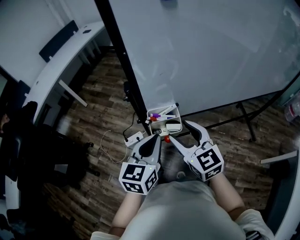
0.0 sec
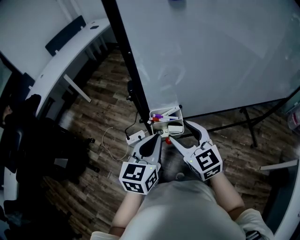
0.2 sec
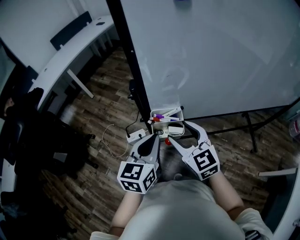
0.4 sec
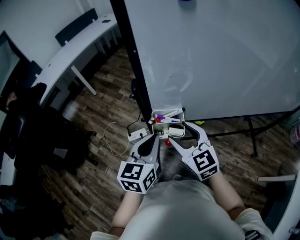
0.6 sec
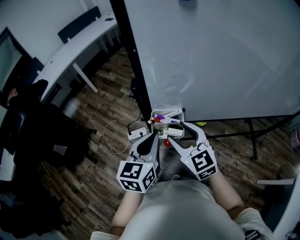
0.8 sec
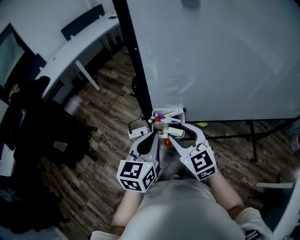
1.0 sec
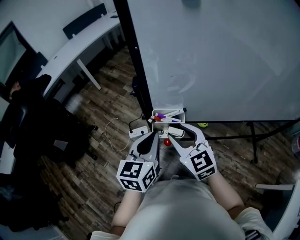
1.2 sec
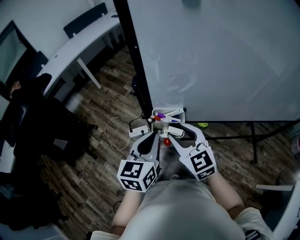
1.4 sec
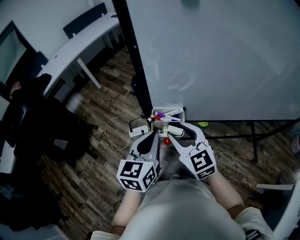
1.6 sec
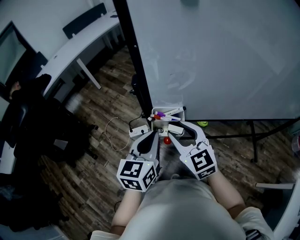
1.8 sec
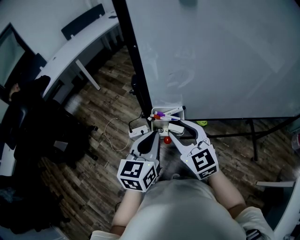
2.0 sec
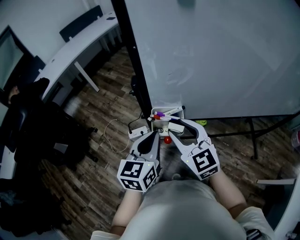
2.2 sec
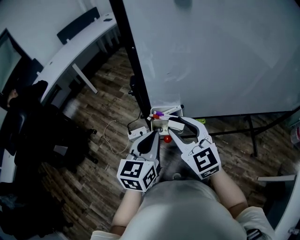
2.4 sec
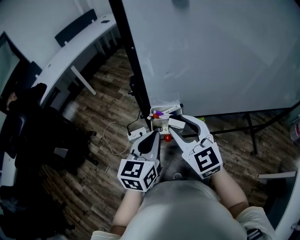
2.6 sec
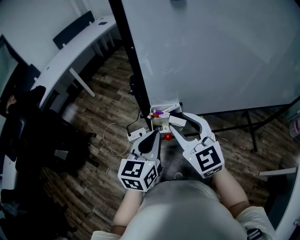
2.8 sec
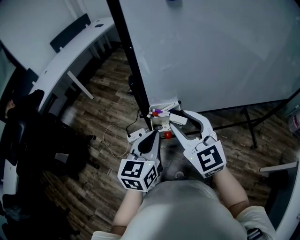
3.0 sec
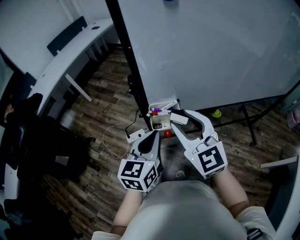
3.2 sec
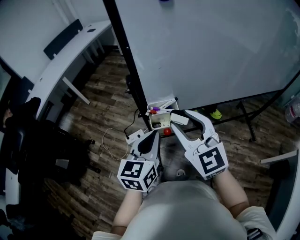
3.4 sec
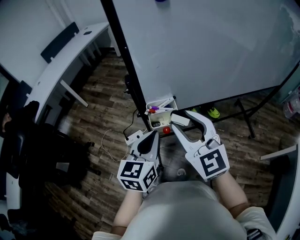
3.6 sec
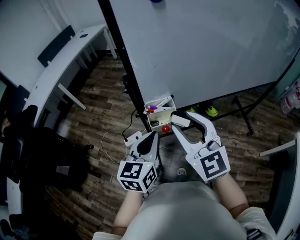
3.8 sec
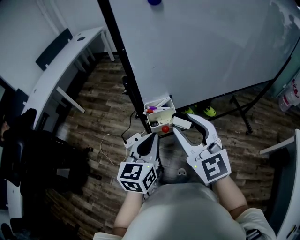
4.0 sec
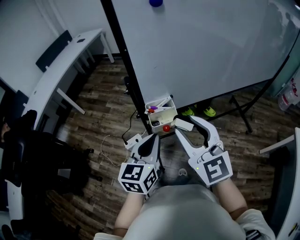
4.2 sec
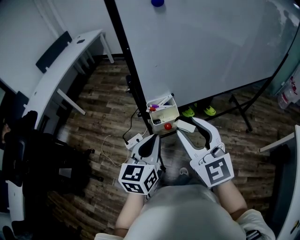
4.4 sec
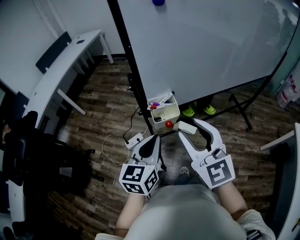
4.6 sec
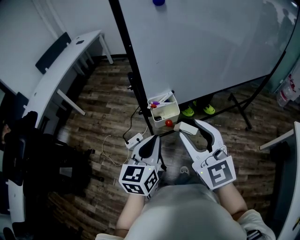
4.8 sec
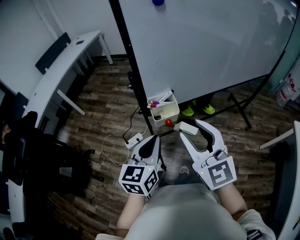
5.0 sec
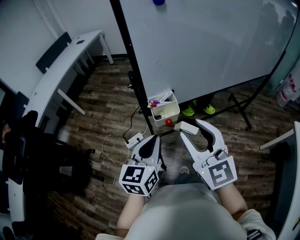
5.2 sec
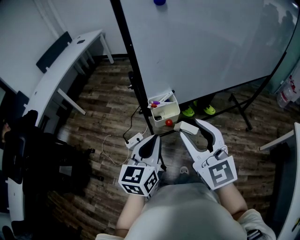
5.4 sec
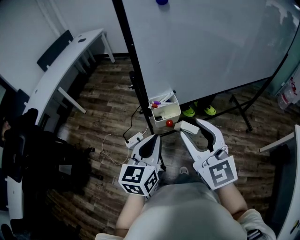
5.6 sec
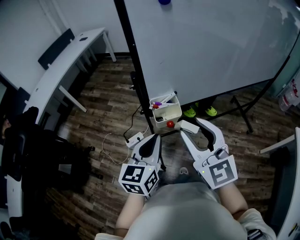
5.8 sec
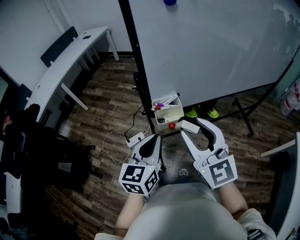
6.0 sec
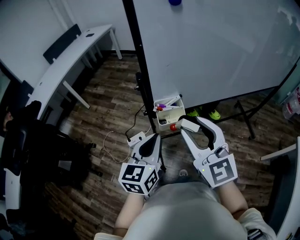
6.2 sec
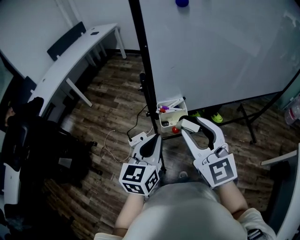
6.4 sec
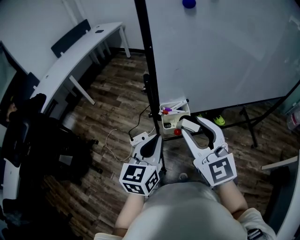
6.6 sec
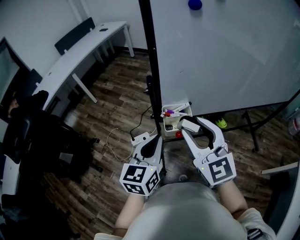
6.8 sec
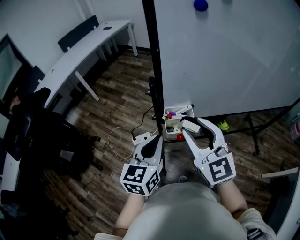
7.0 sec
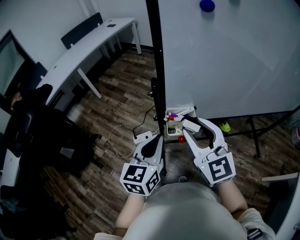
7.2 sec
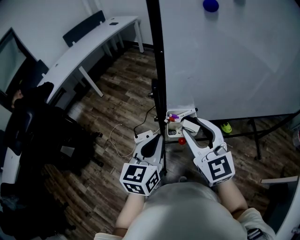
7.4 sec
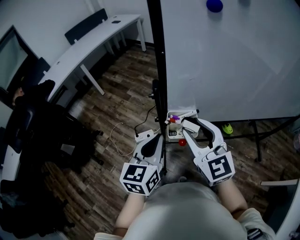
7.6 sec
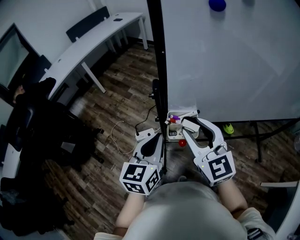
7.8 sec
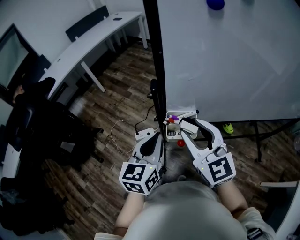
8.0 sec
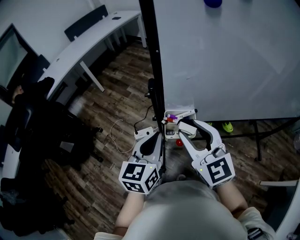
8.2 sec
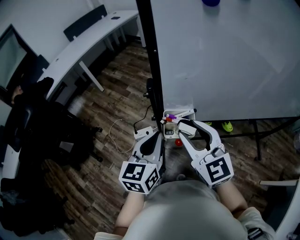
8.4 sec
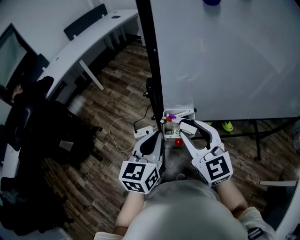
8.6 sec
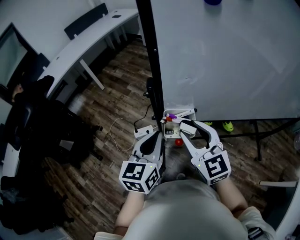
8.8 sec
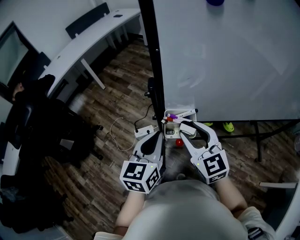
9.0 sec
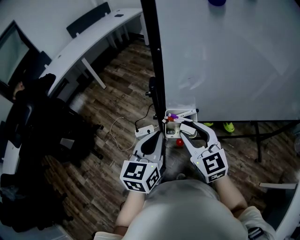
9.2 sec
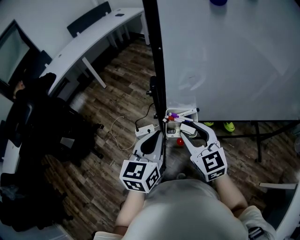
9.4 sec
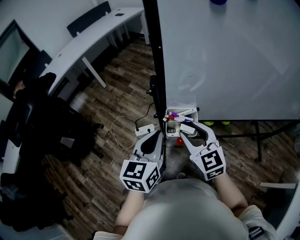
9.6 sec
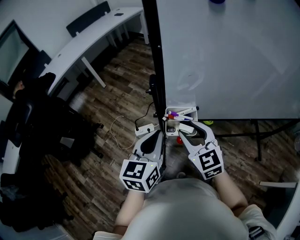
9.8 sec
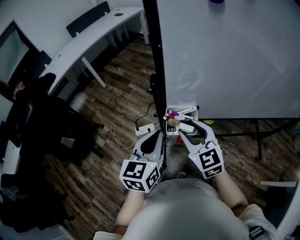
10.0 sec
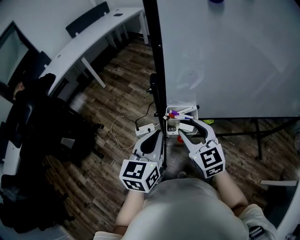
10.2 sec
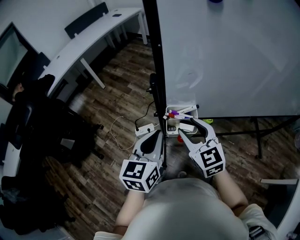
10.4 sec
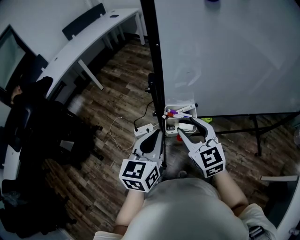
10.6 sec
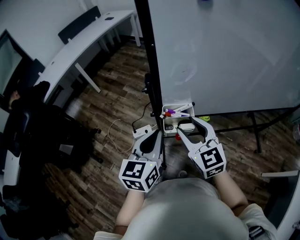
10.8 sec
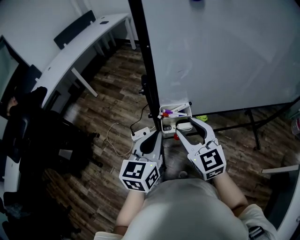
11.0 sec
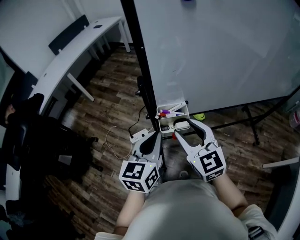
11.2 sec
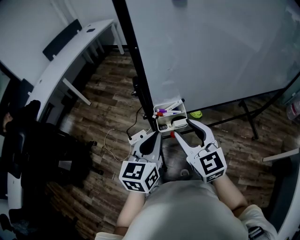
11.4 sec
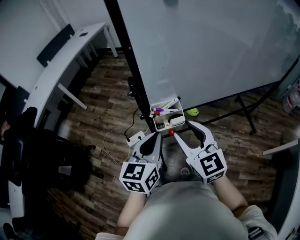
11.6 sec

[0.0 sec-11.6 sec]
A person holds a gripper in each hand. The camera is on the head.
0.0 sec to 1.4 sec: The grippers move only a little.
1.4 sec to 2.8 sec: The right gripper moves upward, roughly 10 cm.
2.8 sec to 4.4 sec: The right gripper heads backward and upward, covering approximately 10 cm. The left gripper goes about 5 cm backward.
4.4 sec to 5.8 sec: There are only small adjustments of the grippers.
5.8 sec to 7.2 sec: The left gripper is displaced forward by some 5 cm, while the right gripper is displaced forward by roughly 10 cm.
7.2 sec to 8.8 sec: The right gripper travels downward by about 5 cm.
8.8 sec to 10.2 sec: The grippers move only a little.
10.2 sec to 11.6 sec: The right gripper shifts some 5 cm backward.

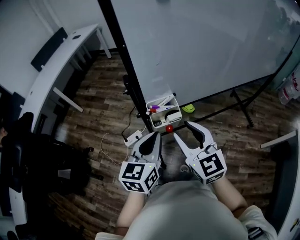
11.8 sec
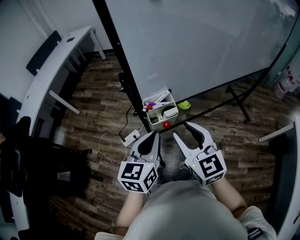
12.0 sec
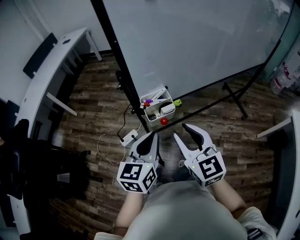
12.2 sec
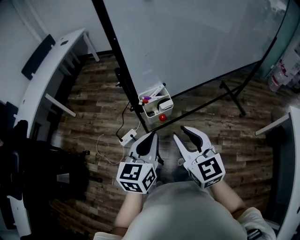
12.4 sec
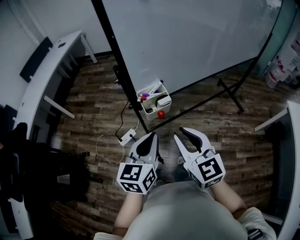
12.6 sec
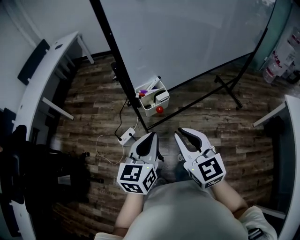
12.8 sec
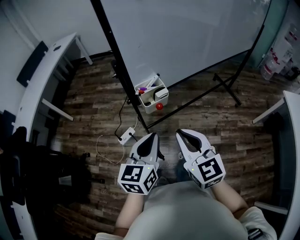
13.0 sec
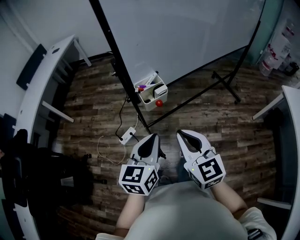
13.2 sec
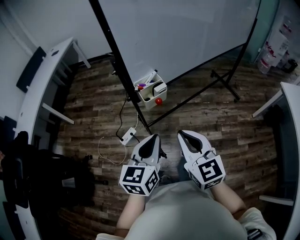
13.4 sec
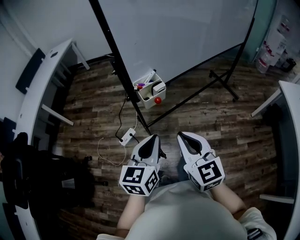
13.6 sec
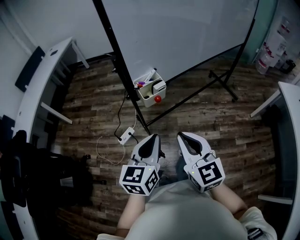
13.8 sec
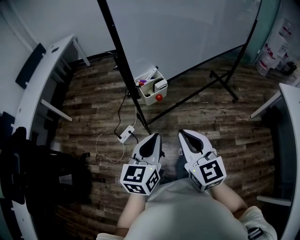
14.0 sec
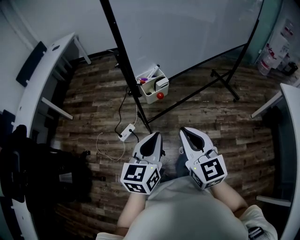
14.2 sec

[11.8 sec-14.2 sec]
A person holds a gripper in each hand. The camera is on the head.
11.8 sec to 13.0 sec: The two grippers go roughly 10 cm backward. The right gripper closes its fingers.
13.0 sec to 14.2 sec: The left gripper shifts by approximately 5 cm.

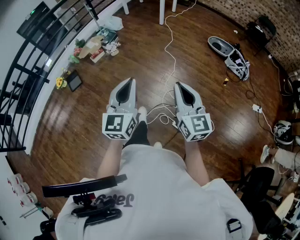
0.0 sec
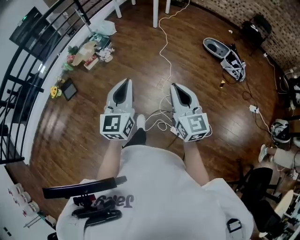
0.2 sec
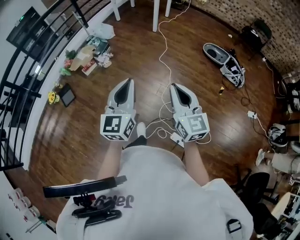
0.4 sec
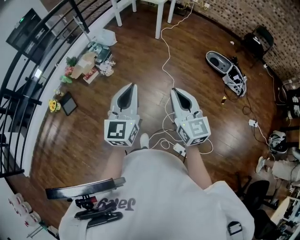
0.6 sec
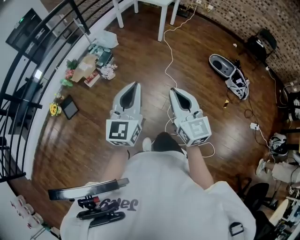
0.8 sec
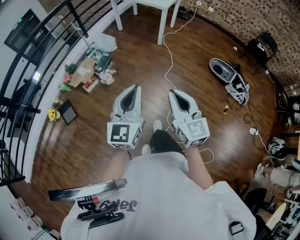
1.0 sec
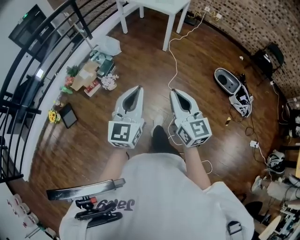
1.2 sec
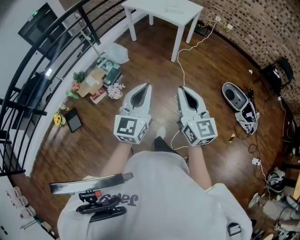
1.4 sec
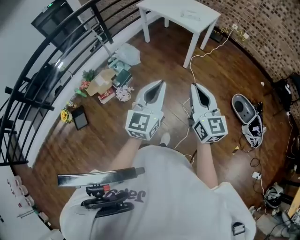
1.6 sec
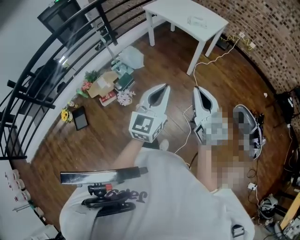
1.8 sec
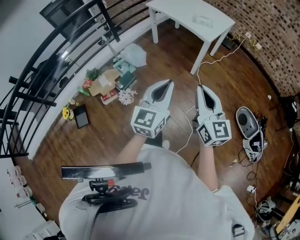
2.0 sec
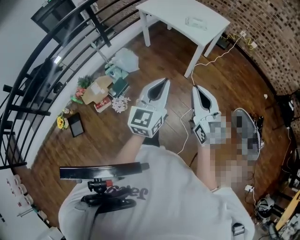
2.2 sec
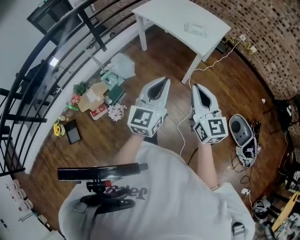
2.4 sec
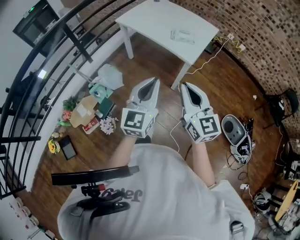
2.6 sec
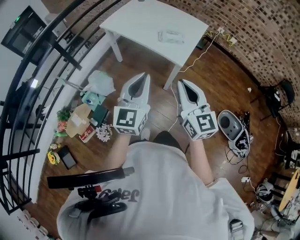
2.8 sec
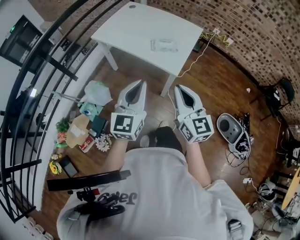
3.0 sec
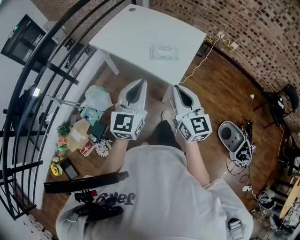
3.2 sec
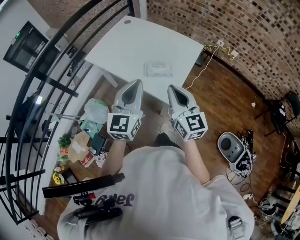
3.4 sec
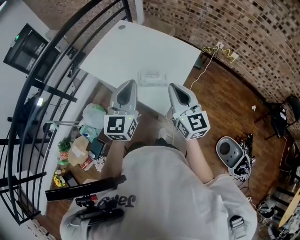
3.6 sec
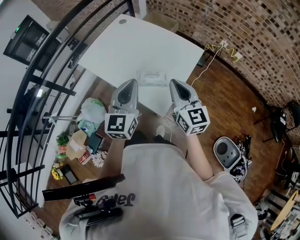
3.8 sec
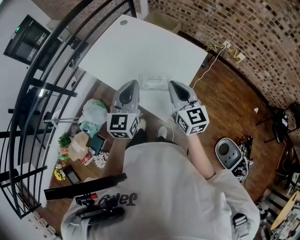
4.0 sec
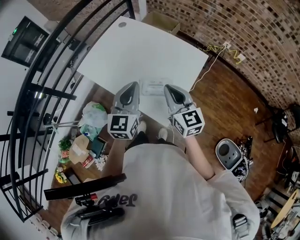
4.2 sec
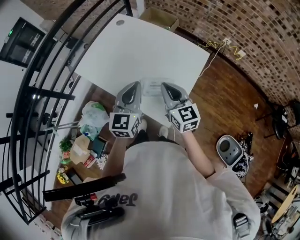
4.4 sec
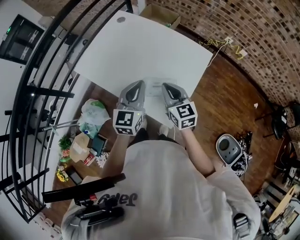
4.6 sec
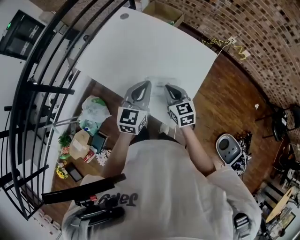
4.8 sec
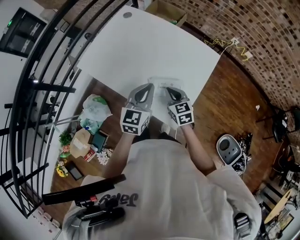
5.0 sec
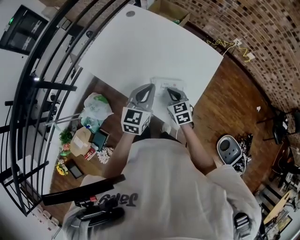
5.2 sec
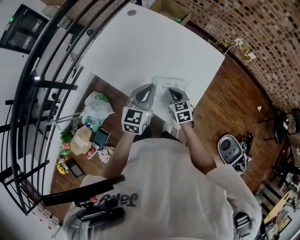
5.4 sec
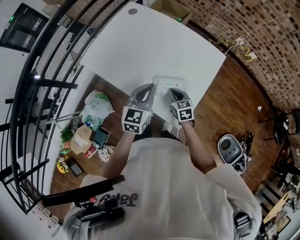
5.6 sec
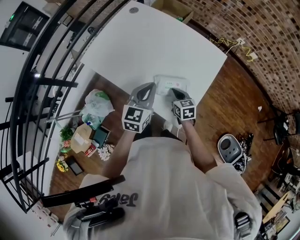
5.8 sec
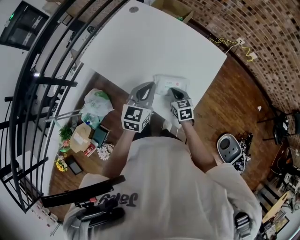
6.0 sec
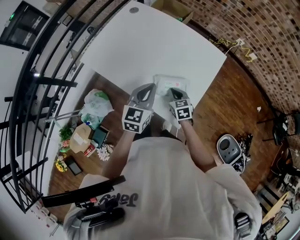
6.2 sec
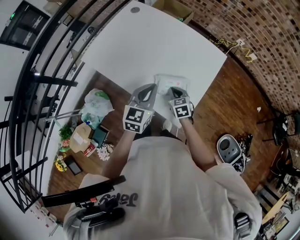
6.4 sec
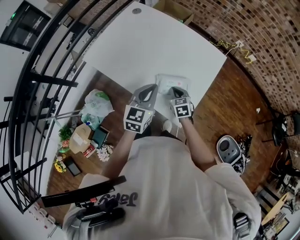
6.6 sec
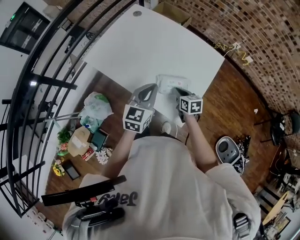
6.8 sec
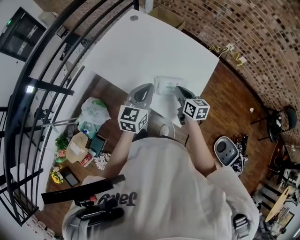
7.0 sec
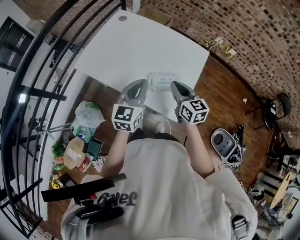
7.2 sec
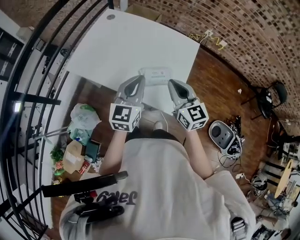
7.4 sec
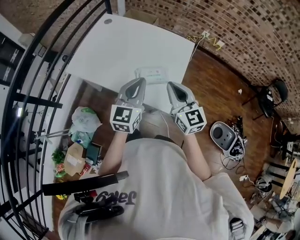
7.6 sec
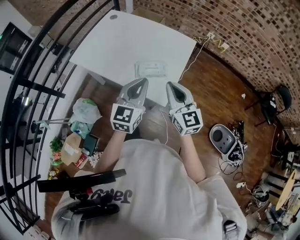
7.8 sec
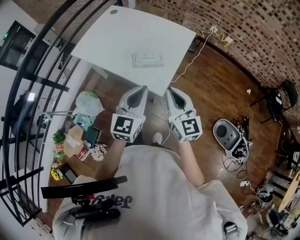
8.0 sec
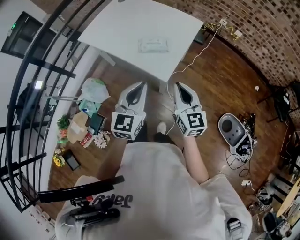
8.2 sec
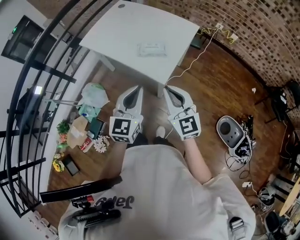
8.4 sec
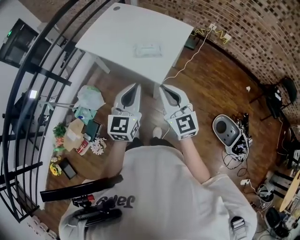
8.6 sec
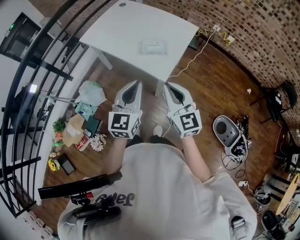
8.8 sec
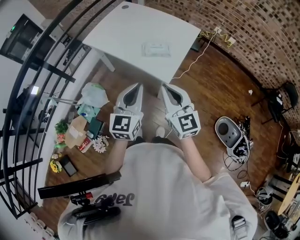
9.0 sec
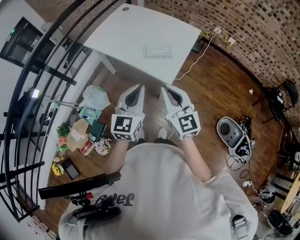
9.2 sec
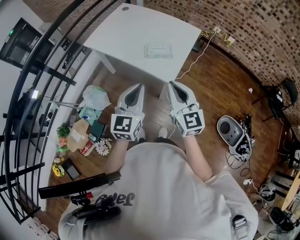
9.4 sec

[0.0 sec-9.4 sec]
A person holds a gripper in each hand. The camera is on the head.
0.0 sec to 1.6 sec: The pair of grippers is taken forward, about 70 cm.
1.6 sec to 3.2 sec: Both grippers are carried forward, roughly 70 cm.
3.2 sec to 4.8 sec: The left gripper shifts about 30 cm forward; the right gripper moves forward and downward, about 35 cm, and swivels some 20 degrees.
4.8 sec to 6.2 sec: The left gripper changes place by approximately 5 cm, while the right gripper moves downward, about 10 cm.
6.2 sec to 7.8 sec: The right gripper moves upward and backward, roughly 30 cm, and angles its fingers upward, by approximately 40 degrees; the left gripper travels backward and upward by about 20 cm.
7.8 sec to 9.4 sec: Both grippers travel together backward, about 15 cm.
